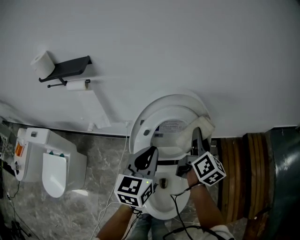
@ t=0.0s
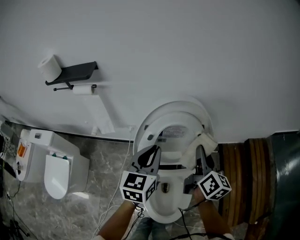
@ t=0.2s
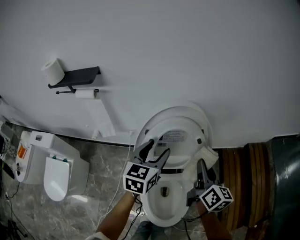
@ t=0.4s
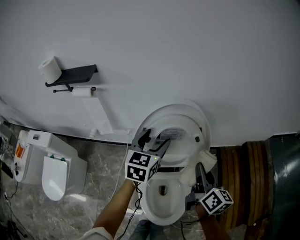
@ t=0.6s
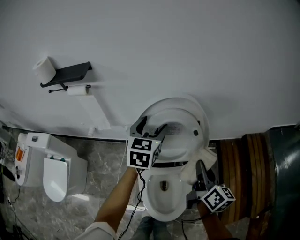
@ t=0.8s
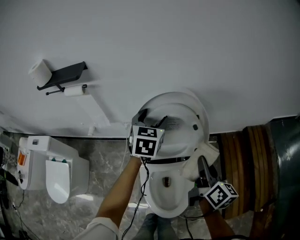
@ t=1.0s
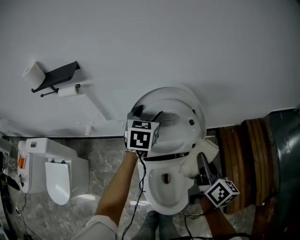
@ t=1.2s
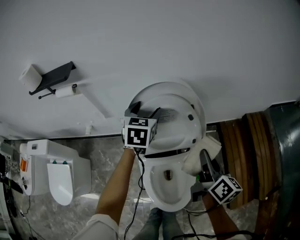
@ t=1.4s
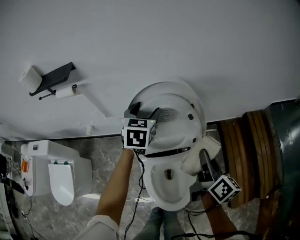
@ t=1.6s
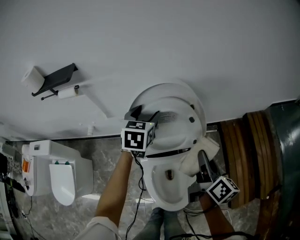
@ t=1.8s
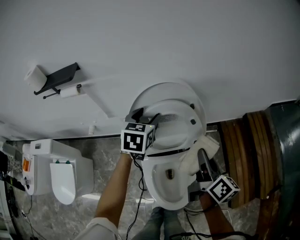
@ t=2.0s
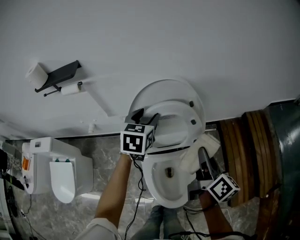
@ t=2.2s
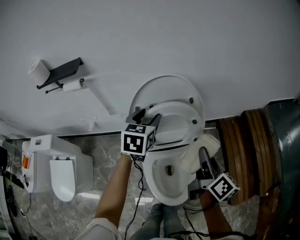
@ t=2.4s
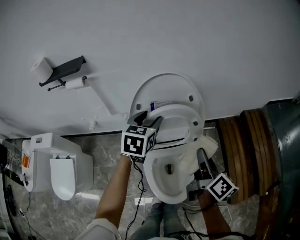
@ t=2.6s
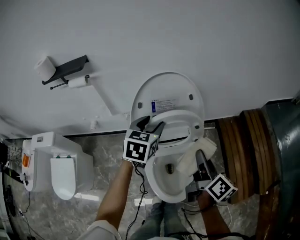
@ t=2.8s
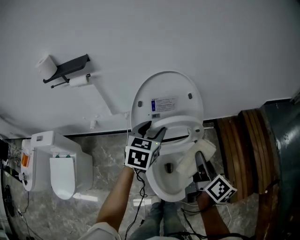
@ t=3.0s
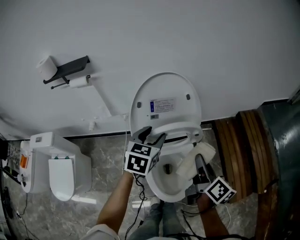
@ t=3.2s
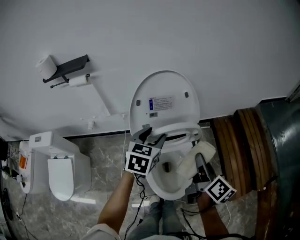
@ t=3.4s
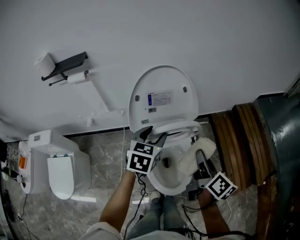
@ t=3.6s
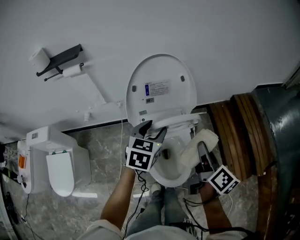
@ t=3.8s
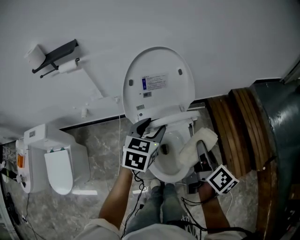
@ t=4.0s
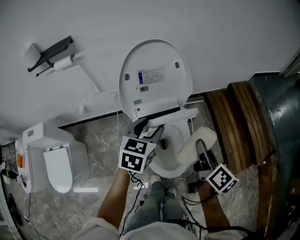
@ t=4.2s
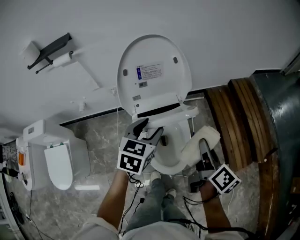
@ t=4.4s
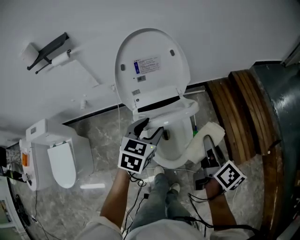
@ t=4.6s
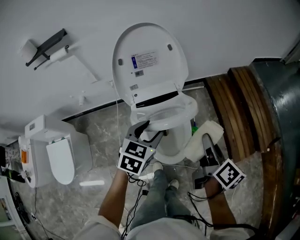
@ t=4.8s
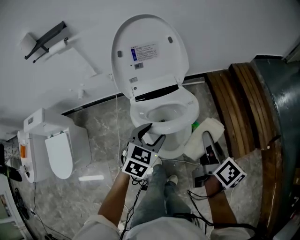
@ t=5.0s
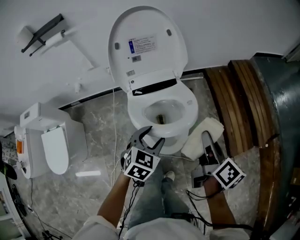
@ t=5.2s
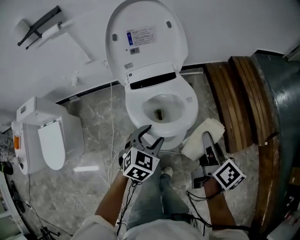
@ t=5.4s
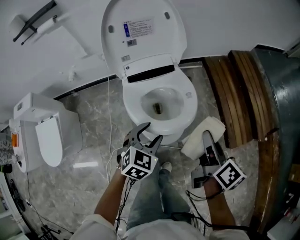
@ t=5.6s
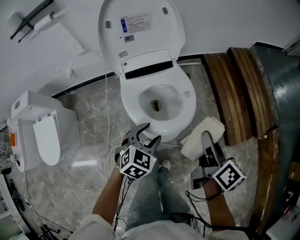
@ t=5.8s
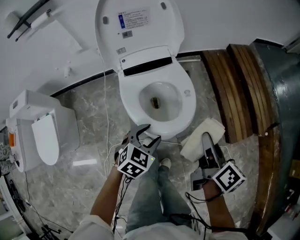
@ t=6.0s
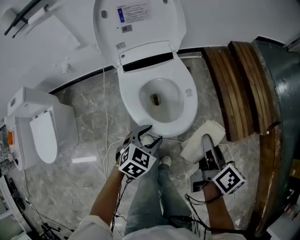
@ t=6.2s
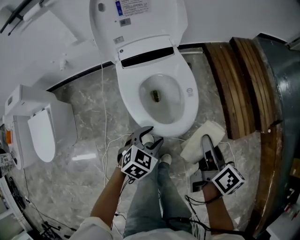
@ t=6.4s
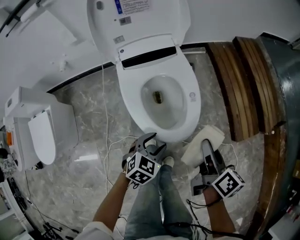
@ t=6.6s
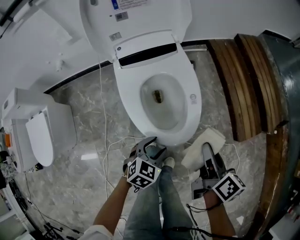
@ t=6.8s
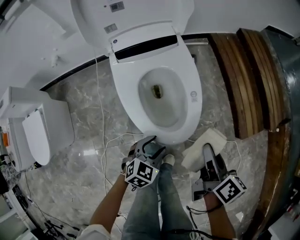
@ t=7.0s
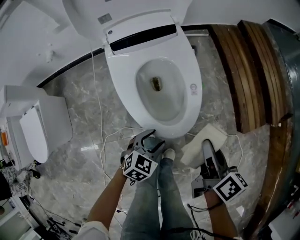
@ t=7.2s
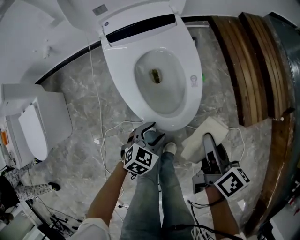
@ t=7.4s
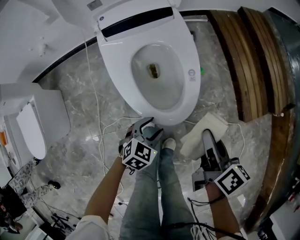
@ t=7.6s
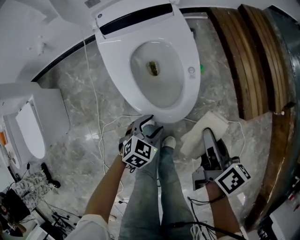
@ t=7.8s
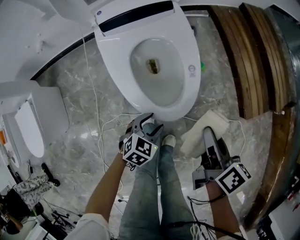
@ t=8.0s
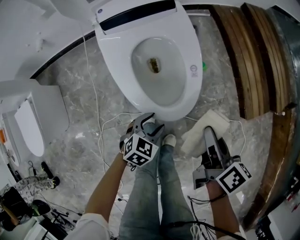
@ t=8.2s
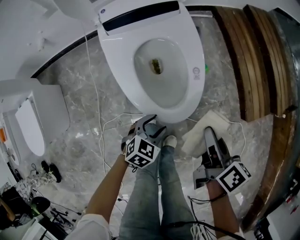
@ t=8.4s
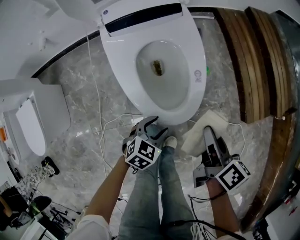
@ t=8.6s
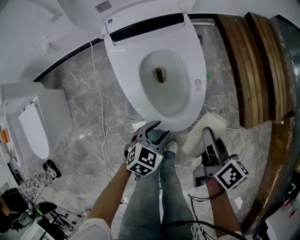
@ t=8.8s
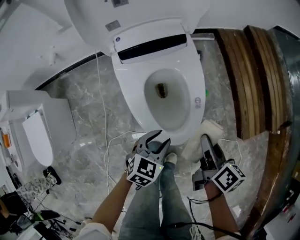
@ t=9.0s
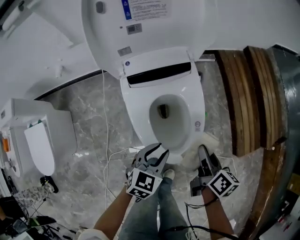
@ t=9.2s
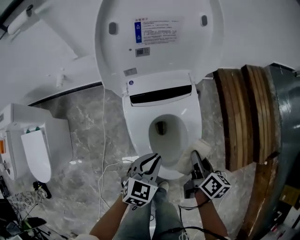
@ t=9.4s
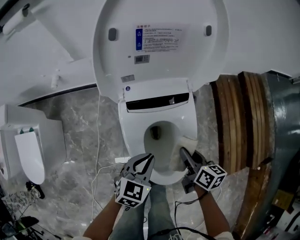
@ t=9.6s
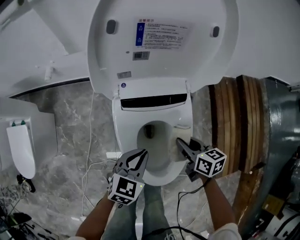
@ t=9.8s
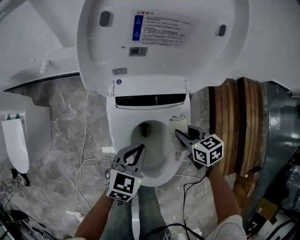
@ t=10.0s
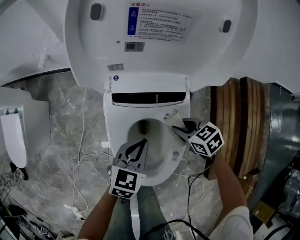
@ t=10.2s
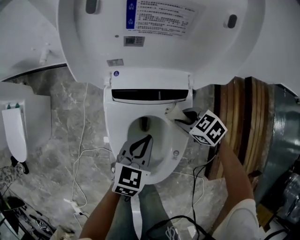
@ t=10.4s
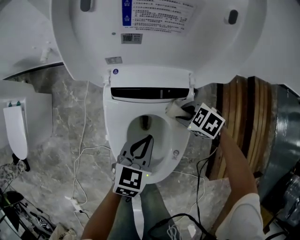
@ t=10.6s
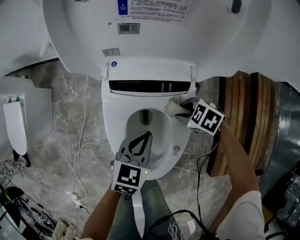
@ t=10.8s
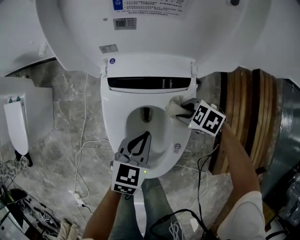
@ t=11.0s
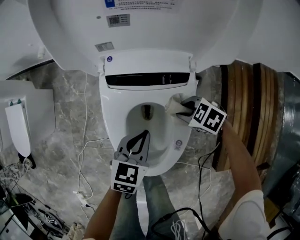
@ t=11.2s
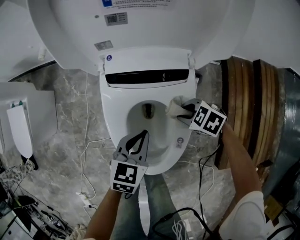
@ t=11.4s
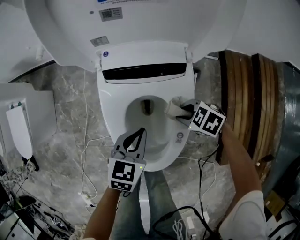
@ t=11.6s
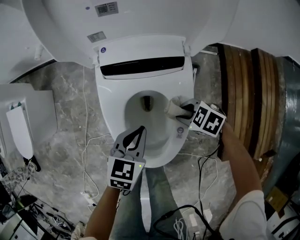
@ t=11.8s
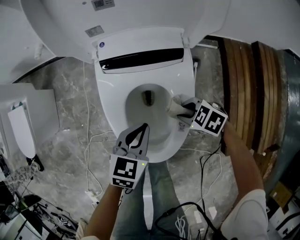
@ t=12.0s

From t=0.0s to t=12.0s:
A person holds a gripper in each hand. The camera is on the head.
From t=0.0s to t=1.6s: The left gripper is displaced forward by about 15 cm, swivels approximately 20 degrees, and opens. Meanwhile the right gripper travels backward by about 15 cm.
From t=1.6s to t=3.0s: The left gripper is displaced backward by some 15 cm; the right gripper heads backward, covering roughly 10 cm.
From t=3.0s to t=4.4s: Both grippers travel together backward, about 10 cm.
From t=4.4s to t=6.0s: The right gripper travels backward, downward and to the right by about 20 cm, while the left gripper shifts approximately 25 cm downward, backward and to the right, and rotates roughly 20 degrees.
From t=6.0s to t=7.6s: Both grippers travel together downward, about 20 cm.
From t=7.6s to t=9.0s: The left gripper heads upward and forward, covering approximately 10 cm; the right gripper moves forward, some 5 cm.
From t=9.0s to t=10.4s: The left gripper changes place by some 20 cm, changes its angle by about 30 degrees, and closes up; the right gripper moves approximately 30 cm, and twists some 80 degrees counterclockwise, seen from behind.
From t=10.4s to t=12.0s: The right gripper changes place by some 15 cm, while the left gripper changes place by some 10 cm.

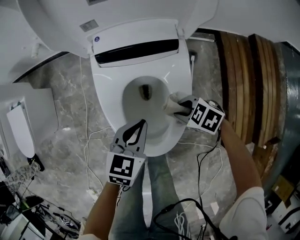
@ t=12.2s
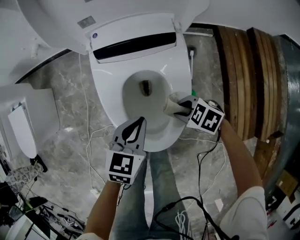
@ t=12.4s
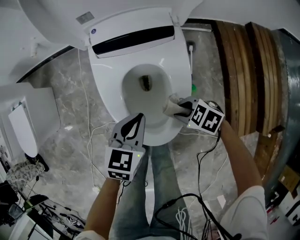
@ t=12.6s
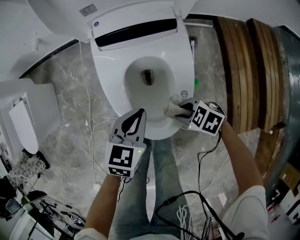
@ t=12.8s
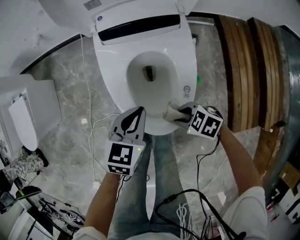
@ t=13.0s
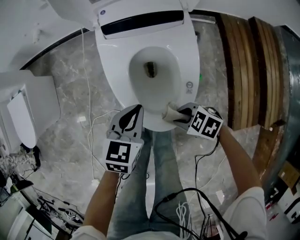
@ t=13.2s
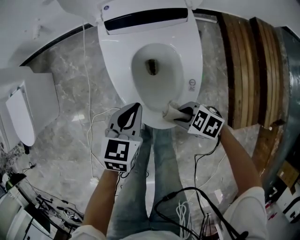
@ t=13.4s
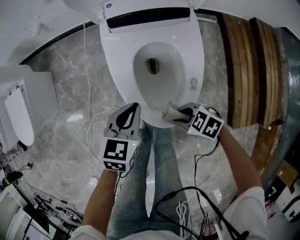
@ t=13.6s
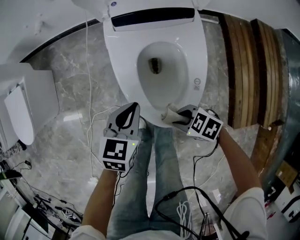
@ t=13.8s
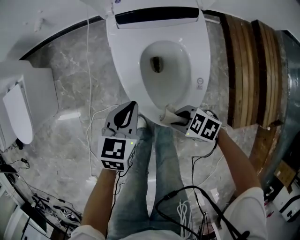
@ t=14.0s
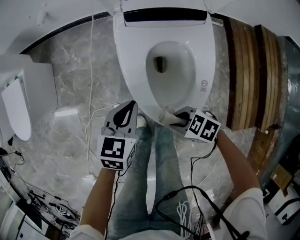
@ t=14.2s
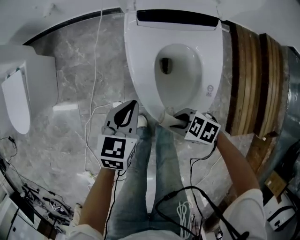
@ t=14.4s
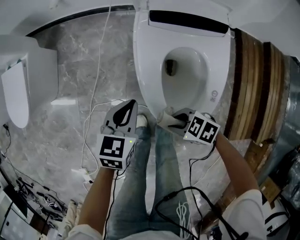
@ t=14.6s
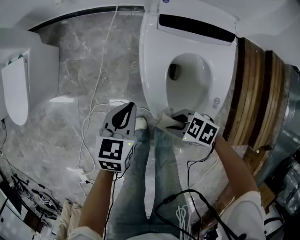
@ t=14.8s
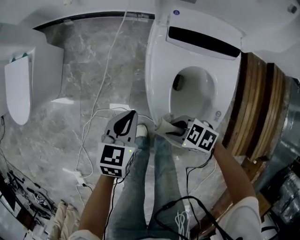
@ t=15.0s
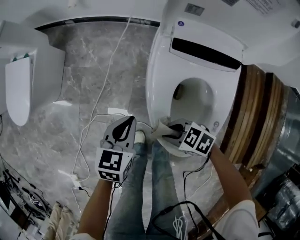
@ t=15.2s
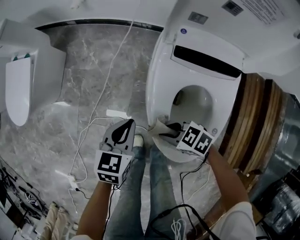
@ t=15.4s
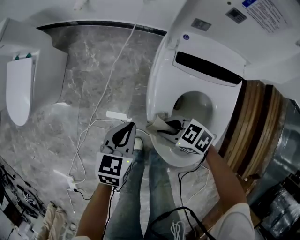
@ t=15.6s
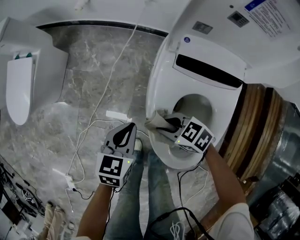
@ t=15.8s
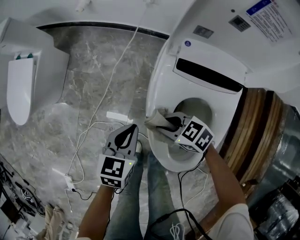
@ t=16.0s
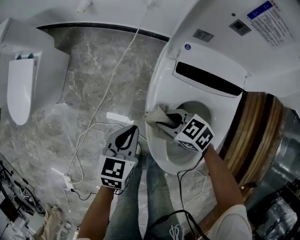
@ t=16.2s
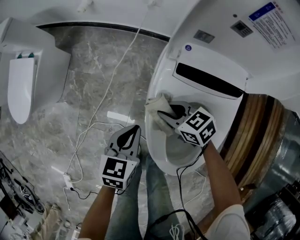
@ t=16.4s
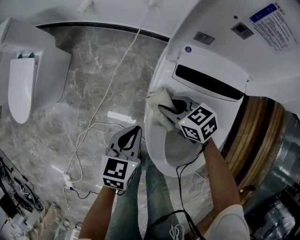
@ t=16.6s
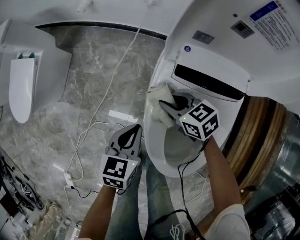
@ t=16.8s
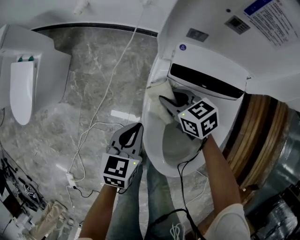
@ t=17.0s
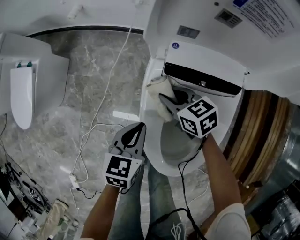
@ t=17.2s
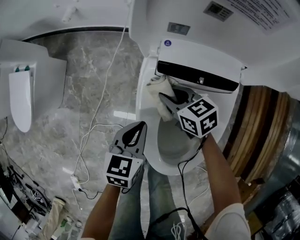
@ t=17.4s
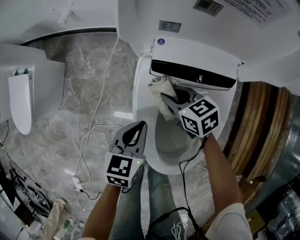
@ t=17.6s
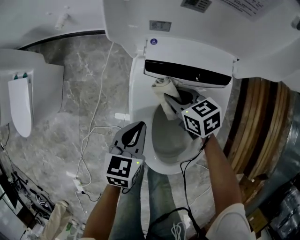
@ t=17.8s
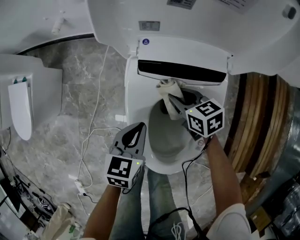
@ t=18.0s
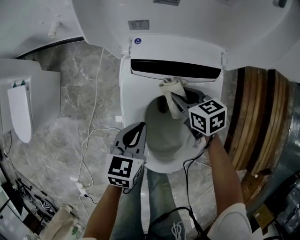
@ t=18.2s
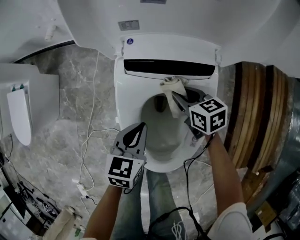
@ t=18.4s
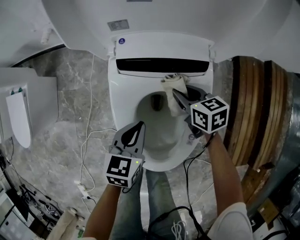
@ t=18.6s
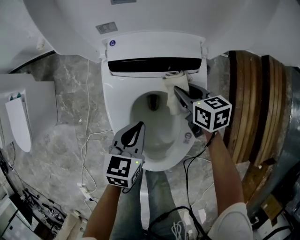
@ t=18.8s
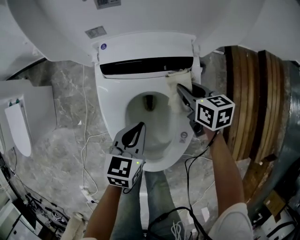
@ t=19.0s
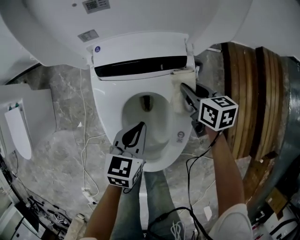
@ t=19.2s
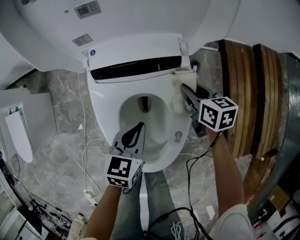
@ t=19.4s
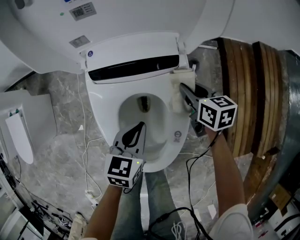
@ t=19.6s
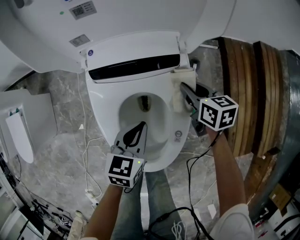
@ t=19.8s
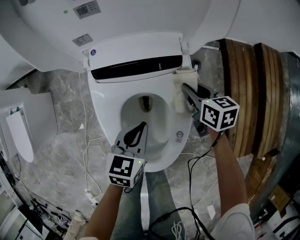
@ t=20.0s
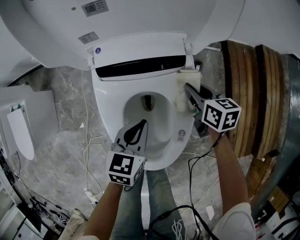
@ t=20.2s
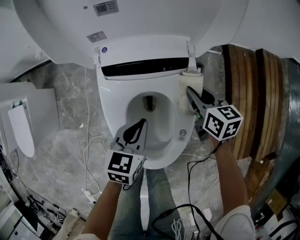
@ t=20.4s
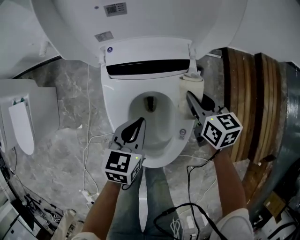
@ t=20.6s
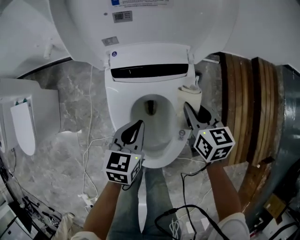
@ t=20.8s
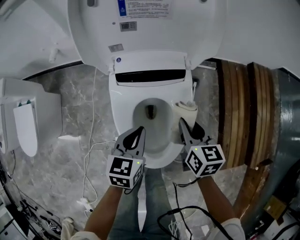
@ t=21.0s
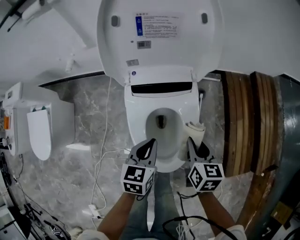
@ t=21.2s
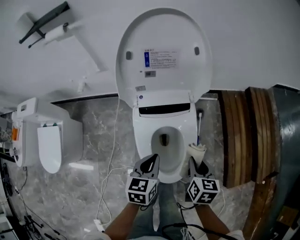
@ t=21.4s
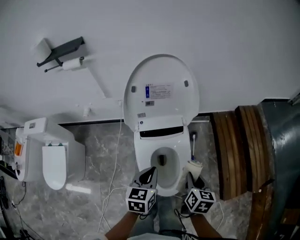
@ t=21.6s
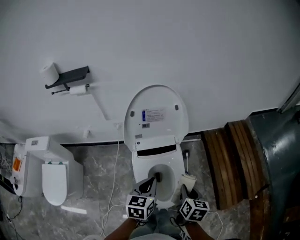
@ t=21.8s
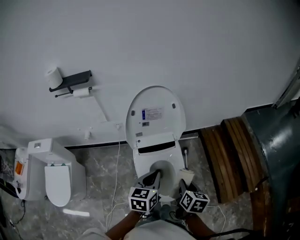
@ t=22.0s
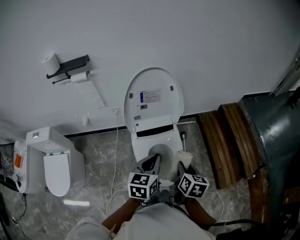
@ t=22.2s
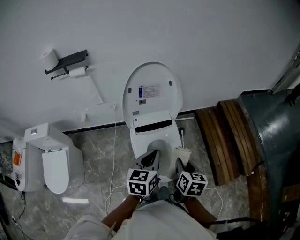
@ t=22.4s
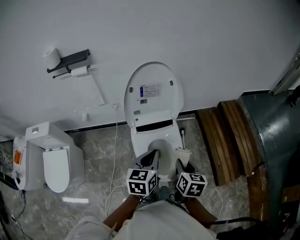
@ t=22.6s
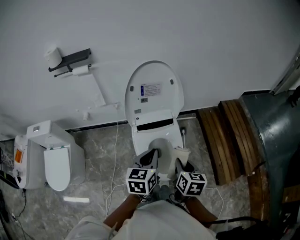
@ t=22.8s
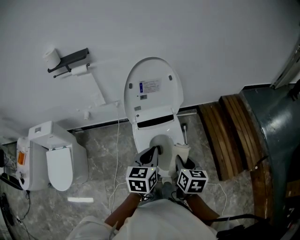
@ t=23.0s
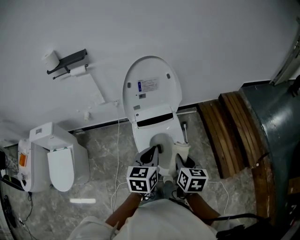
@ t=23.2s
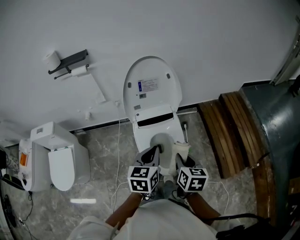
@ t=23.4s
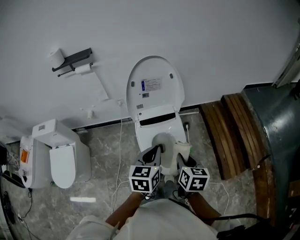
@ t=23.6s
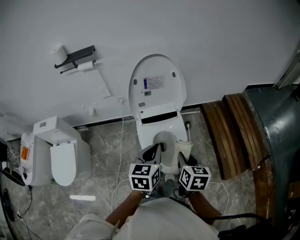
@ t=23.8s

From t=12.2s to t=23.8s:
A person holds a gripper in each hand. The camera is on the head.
From t=12.2s to t=13.6s: The left gripper ends up roughly 10 cm from where it was. The right gripper moves approximately 15 cm.
From t=13.6s to t=15.0s: The right gripper ends up approximately 15 cm from where it was, while the left gripper ends up about 15 cm from where it was.
From t=15.0s to t=16.6s: The left gripper shifts by some 5 cm; the right gripper shifts by some 25 cm, and swivels about 20 degrees.
From t=16.6s to t=18.0s: The grippers both shift to the right by some 10 cm. The right gripper changes its angle by approximately 20 degrees.
From t=18.0s to t=19.4s: The left gripper moves to the right, about 10 cm, while the right gripper travels to the right by some 20 cm, and swivels some 30 degrees.
From t=19.4s to t=21.0s: The right gripper goes approximately 15 cm upward, backward and to the left. Meanwhile the left gripper travels upward by about 10 cm.
From t=21.0s to t=22.4s: The right gripper goes approximately 30 cm upward and backward, and changes its angle by some 20 degrees. The left gripper heads upward, covering roughly 30 cm.
From t=22.4s to t=23.8s: The grippers make only small movements.
